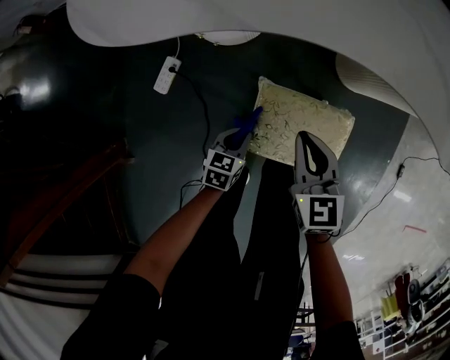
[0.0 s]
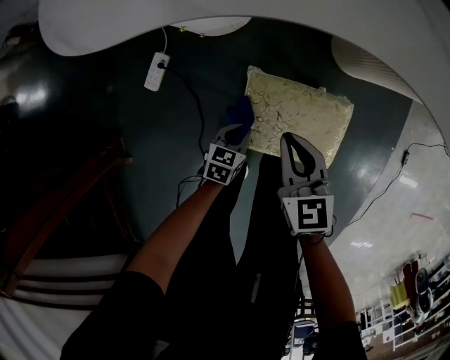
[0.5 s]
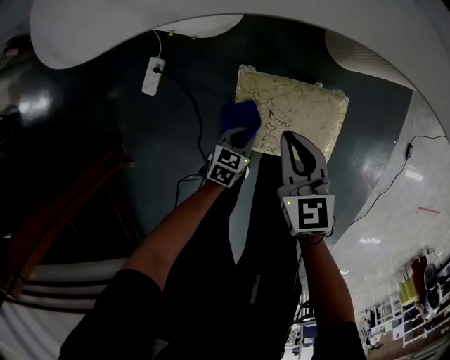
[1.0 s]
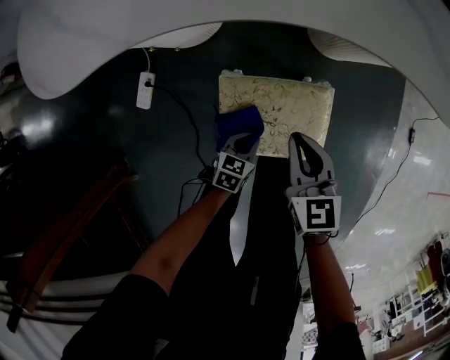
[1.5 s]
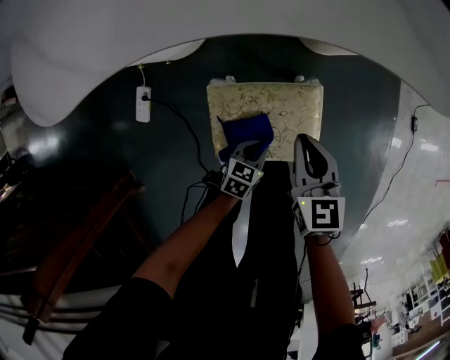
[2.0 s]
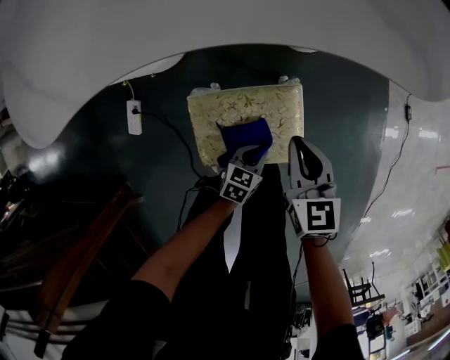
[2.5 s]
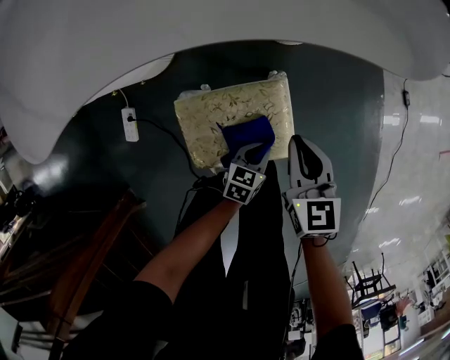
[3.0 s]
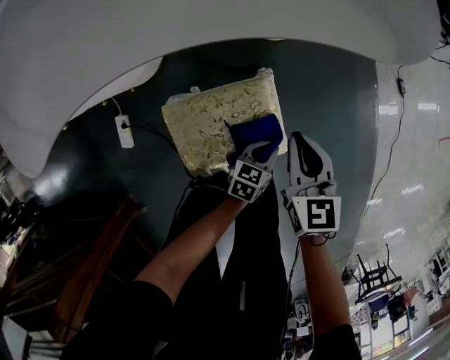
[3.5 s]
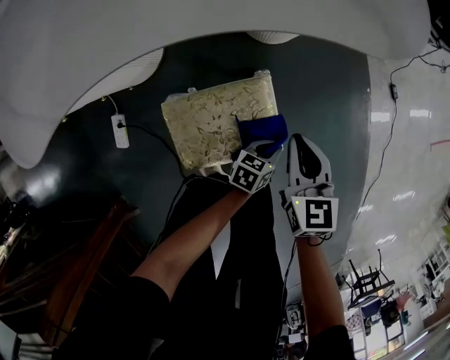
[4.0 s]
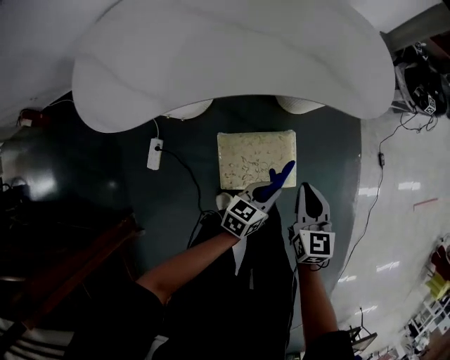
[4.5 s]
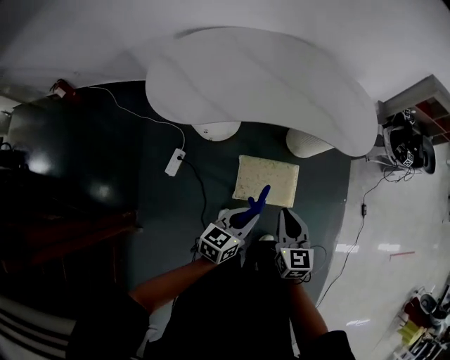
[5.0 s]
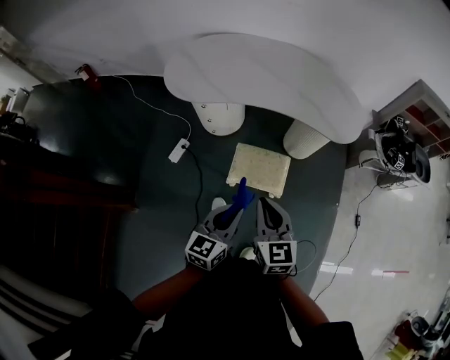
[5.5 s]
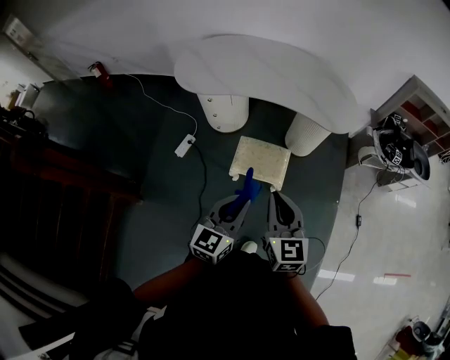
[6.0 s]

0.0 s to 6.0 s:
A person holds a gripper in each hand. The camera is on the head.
0.0 to 2.0 s: The grippers both shift to the right by roughly 15 cm. The right gripper swivels about 20 degrees, while the left gripper changes its angle by approximately 20 degrees.
2.0 to 4.0 s: Both grippers move to the right, some 15 cm.
4.0 to 6.0 s: The grippers both shift upward by about 60 cm. The left gripper angles its fingers upward, by roughly 30 degrees, while the right gripper changes its angle by roughly 40 degrees.

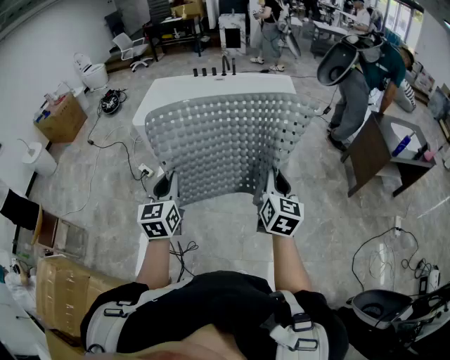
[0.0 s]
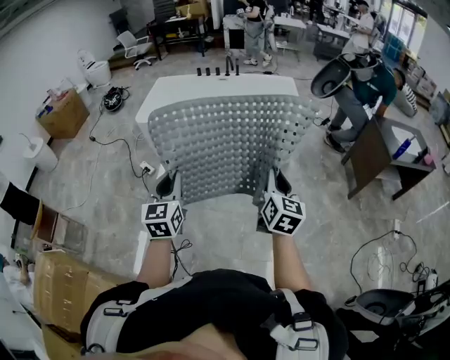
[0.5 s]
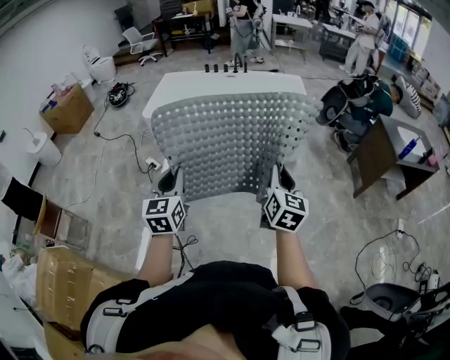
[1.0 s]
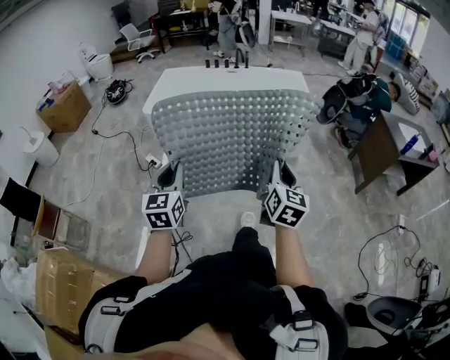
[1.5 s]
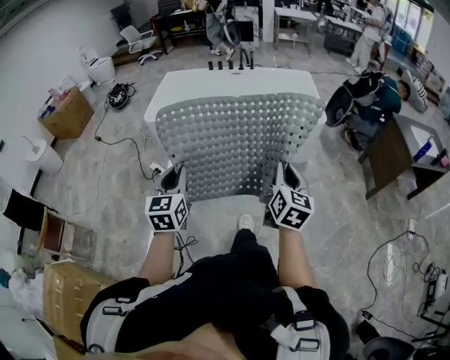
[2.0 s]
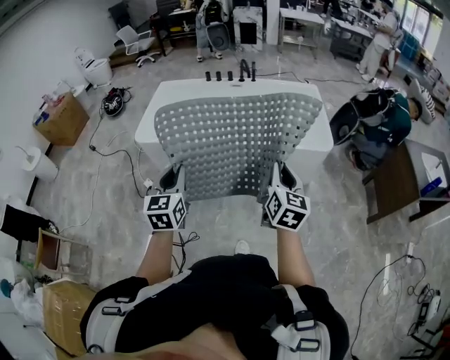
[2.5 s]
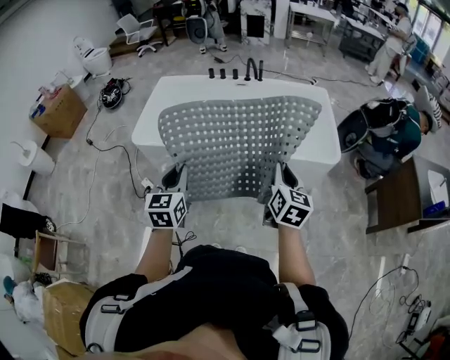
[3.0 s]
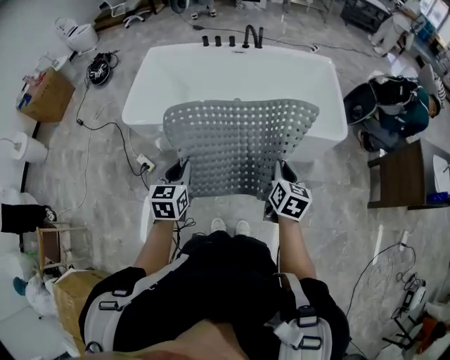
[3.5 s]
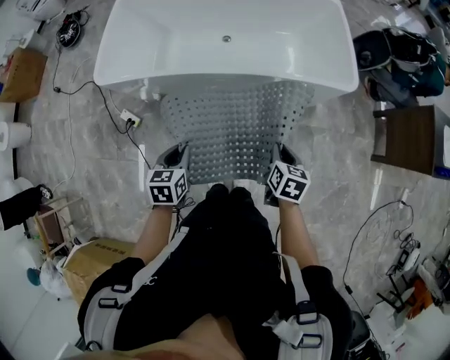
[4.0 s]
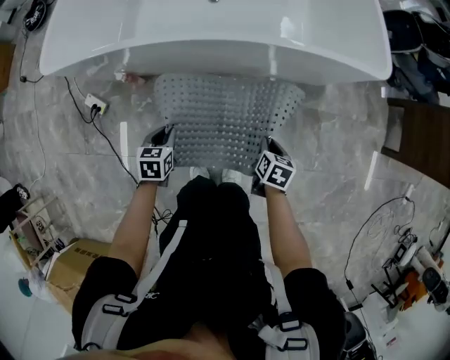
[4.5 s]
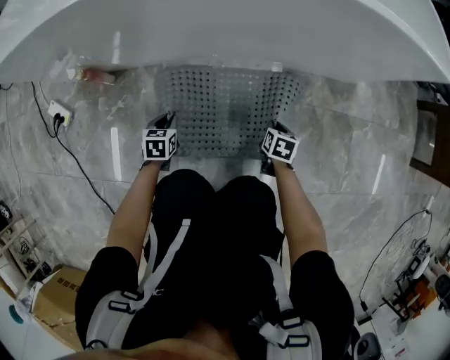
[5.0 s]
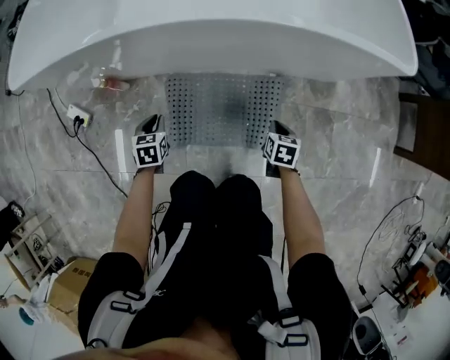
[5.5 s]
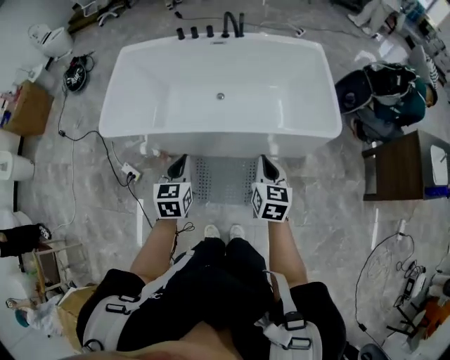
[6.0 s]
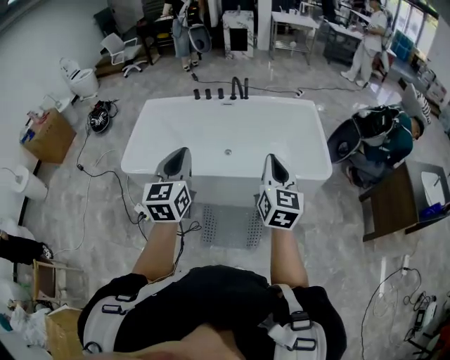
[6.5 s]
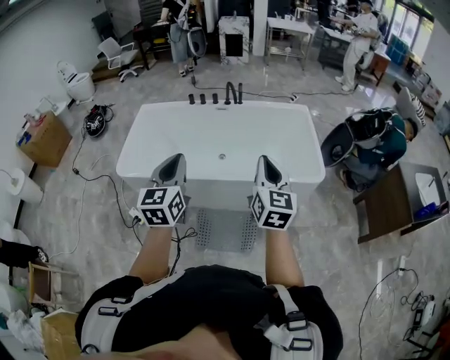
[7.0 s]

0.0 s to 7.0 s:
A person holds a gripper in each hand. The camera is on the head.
0.0 to 2.0 s: The grippers both shift to the left and forward by roughly 15 cm.
2.0 to 3.5 s: Both grippers move forward, roughly 35 cm. The right gripper changes its angle by about 20 degrees.
3.5 to 5.0 s: Both grippers travel together downward, roughly 80 cm. The right gripper tilts its fingers some 30 degrees downward. Meanwhile the left gripper changes its angle by about 30 degrees.
5.0 to 7.0 s: Both grippers travel together upward, about 1 m. The left gripper tips its fingers upward by about 50 degrees, while the right gripper tilts its fingers some 60 degrees upward.

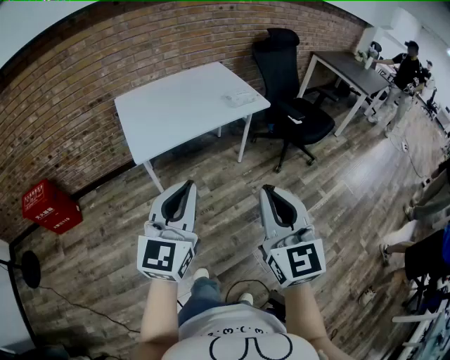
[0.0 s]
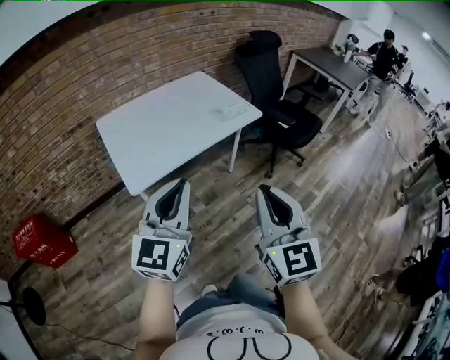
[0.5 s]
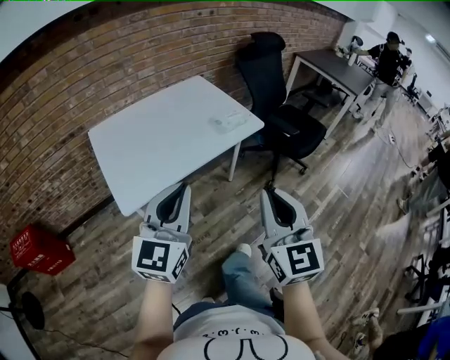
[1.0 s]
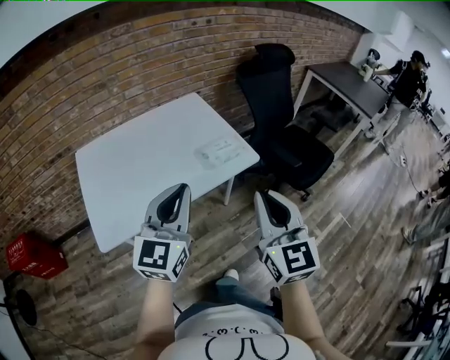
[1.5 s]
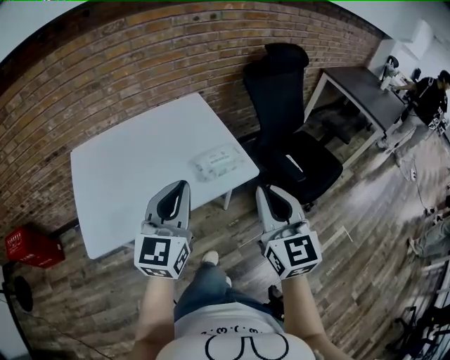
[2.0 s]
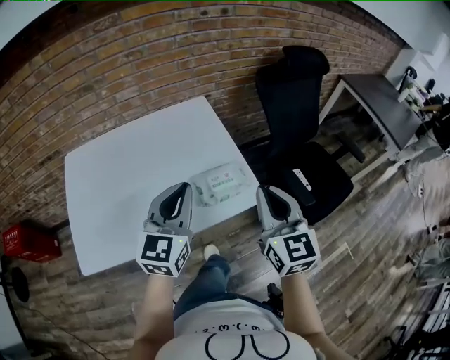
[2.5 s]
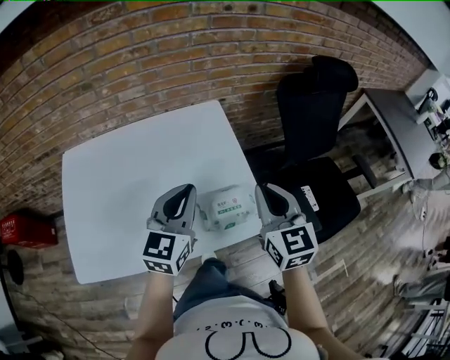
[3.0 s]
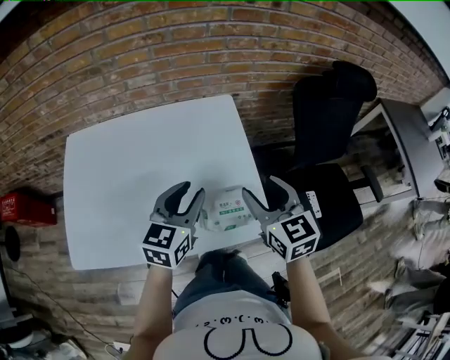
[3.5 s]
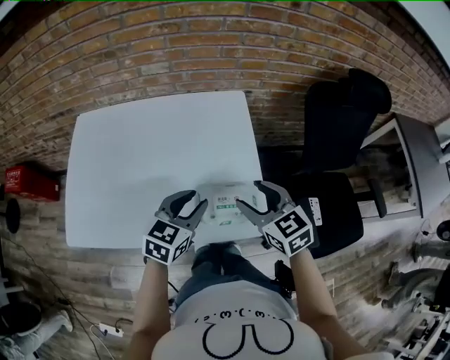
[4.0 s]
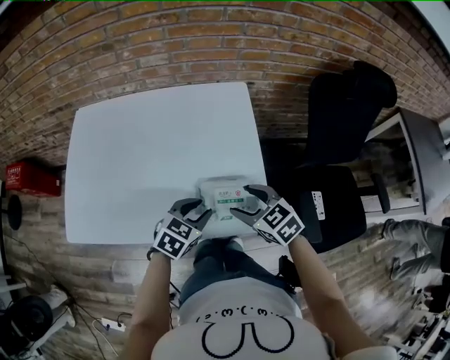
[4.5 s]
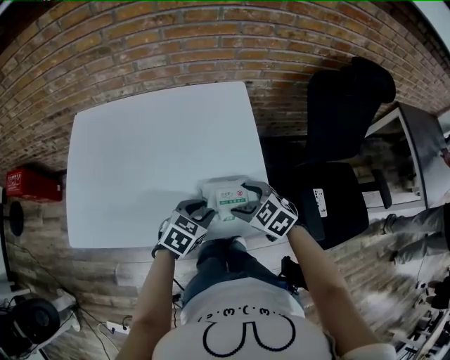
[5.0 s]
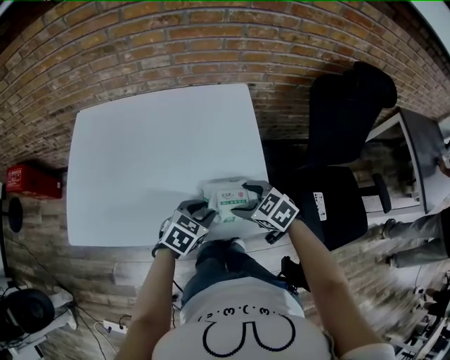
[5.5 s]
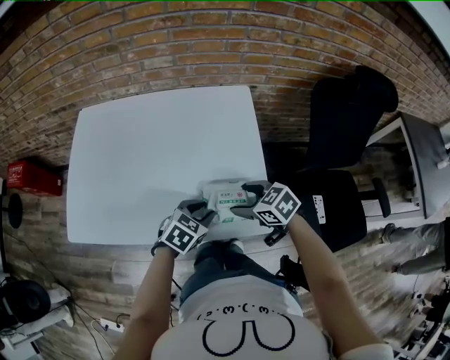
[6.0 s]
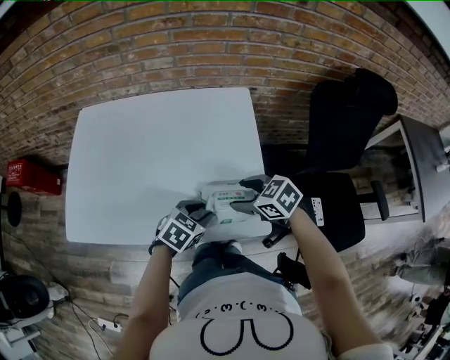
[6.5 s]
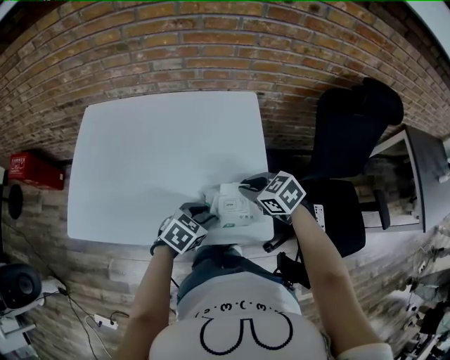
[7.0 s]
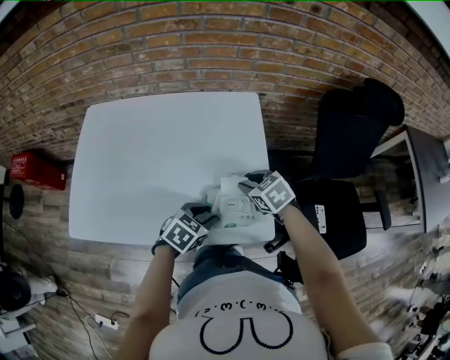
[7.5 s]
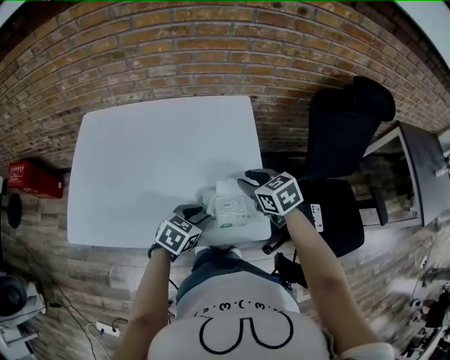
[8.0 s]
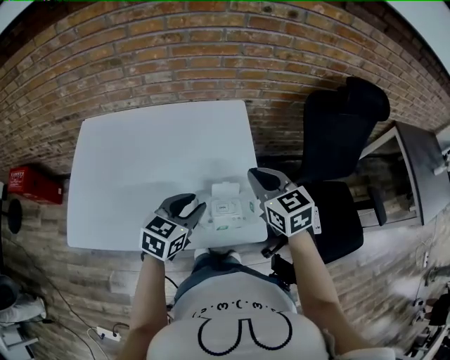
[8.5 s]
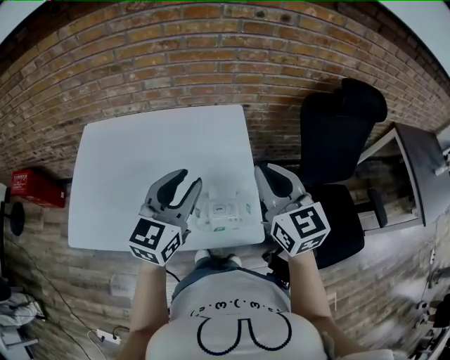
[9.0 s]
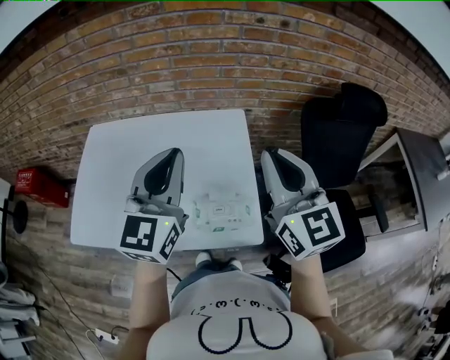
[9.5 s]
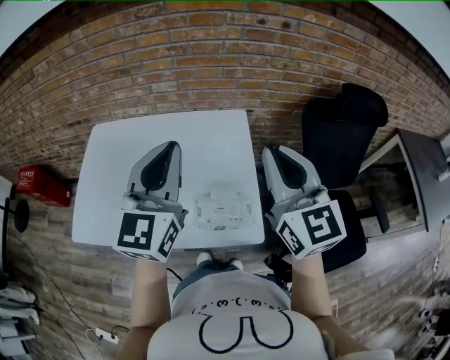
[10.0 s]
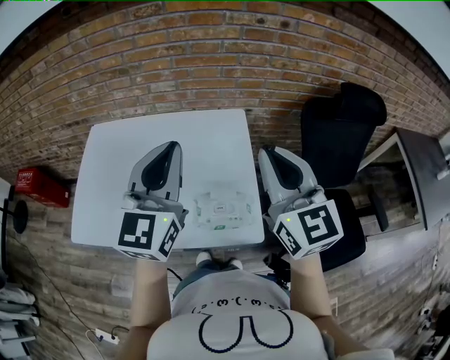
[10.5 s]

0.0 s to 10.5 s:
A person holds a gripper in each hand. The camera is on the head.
0.0 to 2.0 s: Both grippers are carried forward, some 50 cm.
2.0 to 4.0 s: The two grippers go approximately 30 cm forward and downward. The right gripper turns by roughly 50 degrees, and opens its fingers. Meanwhile the left gripper turns by some 30 degrees, and opens up.
4.0 to 6.5 s: The grippers both shift downward by about 10 cm. The right gripper swivels about 30 degrees. The left gripper turns by roughly 20 degrees.
6.5 to 8.5 s: The two grippers go some 10 cm upward. The right gripper changes its angle by roughly 40 degrees, and closes its fingers; the left gripper rotates some 20 degrees.
8.5 to 10.5 s: Both grippers move upward, some 25 cm. The right gripper changes its angle by some 30 degrees, while the left gripper points its fingers approximately 30 degrees further upward, and closes its fingers.

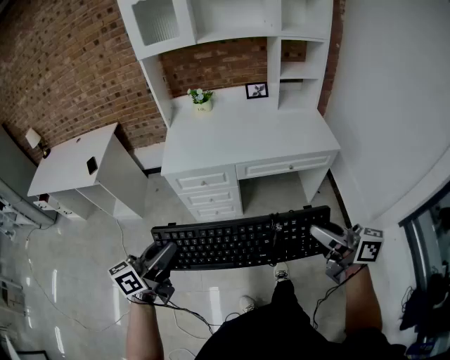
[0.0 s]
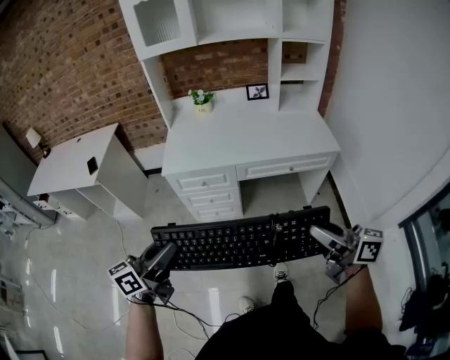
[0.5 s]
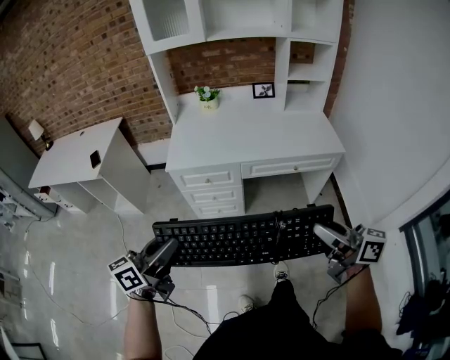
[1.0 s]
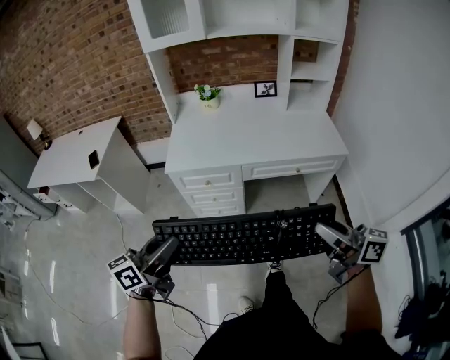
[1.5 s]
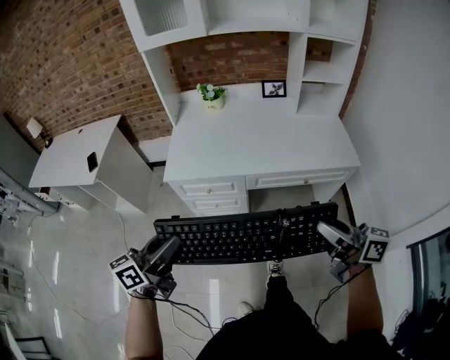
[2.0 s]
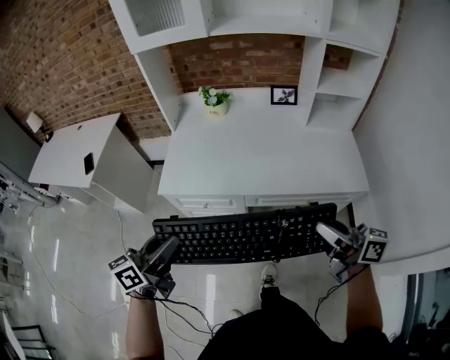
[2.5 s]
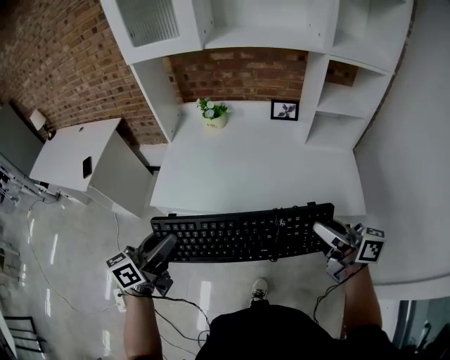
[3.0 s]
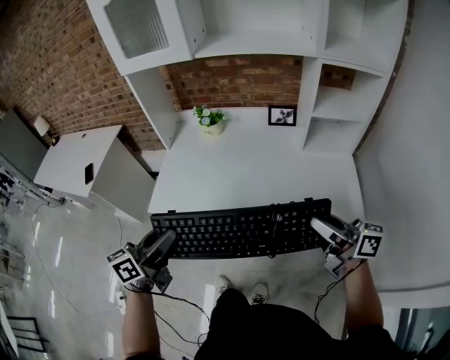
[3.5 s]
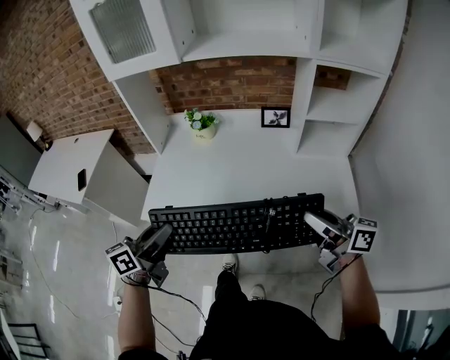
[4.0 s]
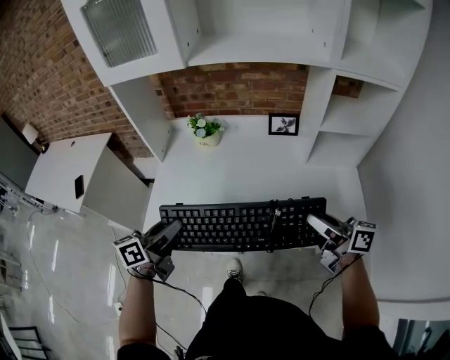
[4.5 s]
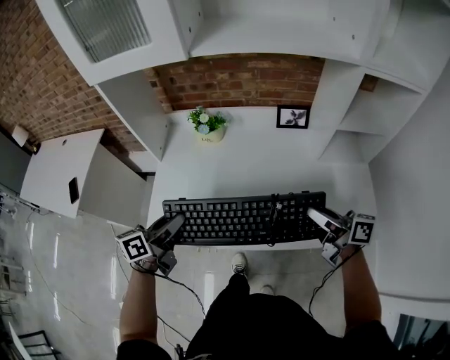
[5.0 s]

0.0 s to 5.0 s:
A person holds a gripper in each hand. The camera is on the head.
0.0 to 2.5 s: Both grippers move forward, about 25 cm.
2.5 to 5.0 s: Both grippers move forward, approximately 30 cm.
